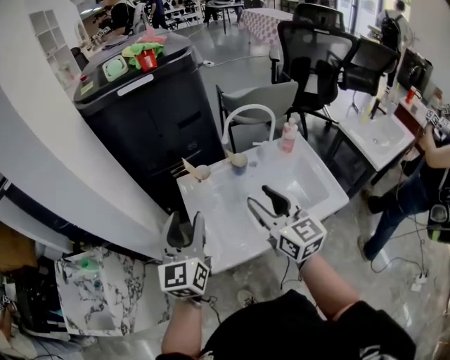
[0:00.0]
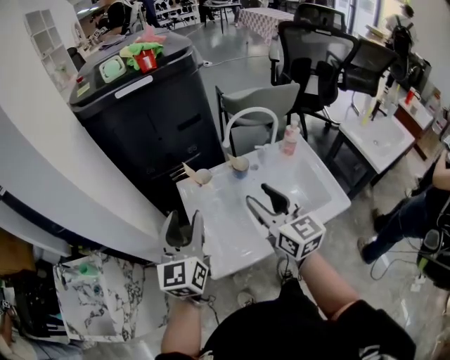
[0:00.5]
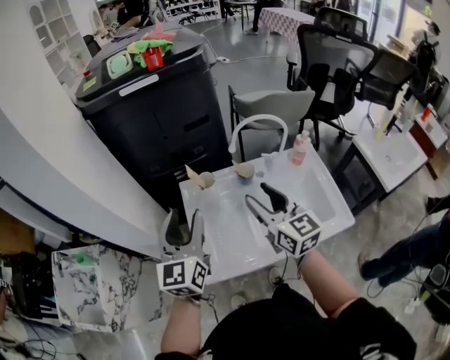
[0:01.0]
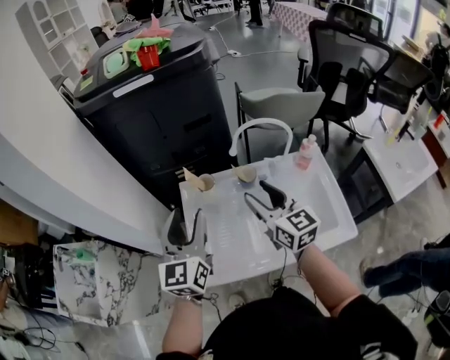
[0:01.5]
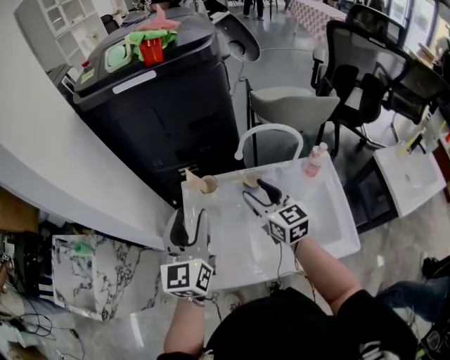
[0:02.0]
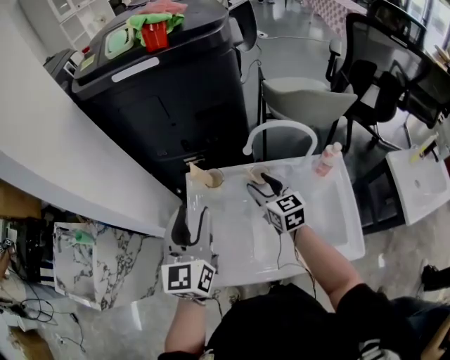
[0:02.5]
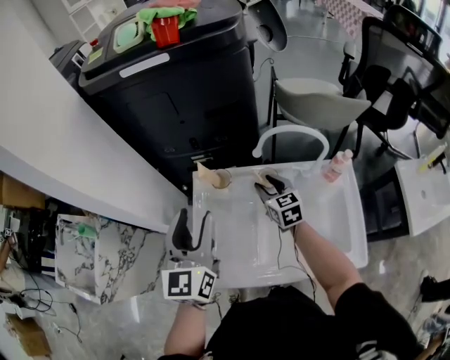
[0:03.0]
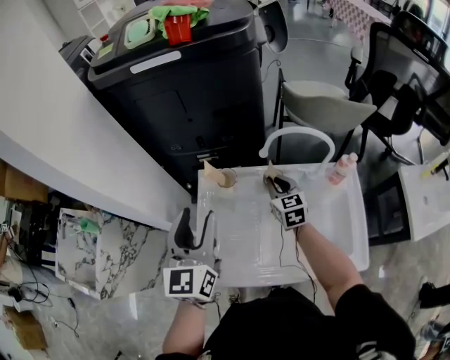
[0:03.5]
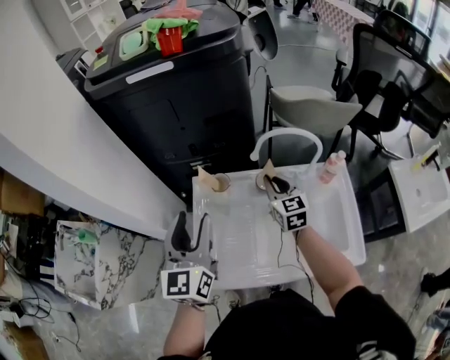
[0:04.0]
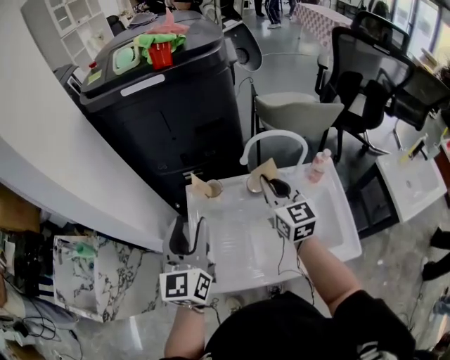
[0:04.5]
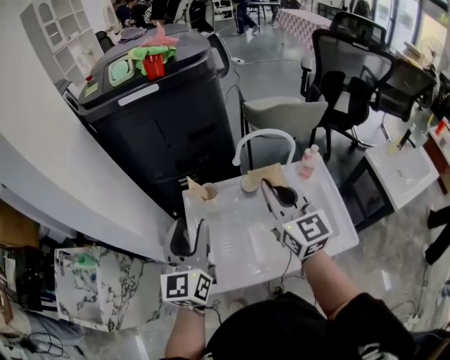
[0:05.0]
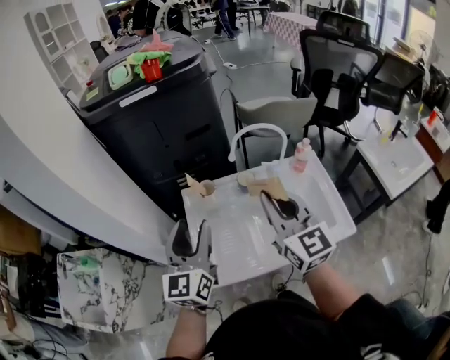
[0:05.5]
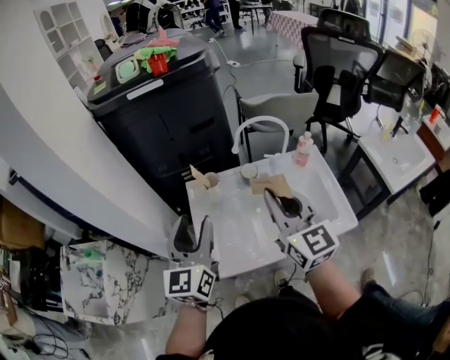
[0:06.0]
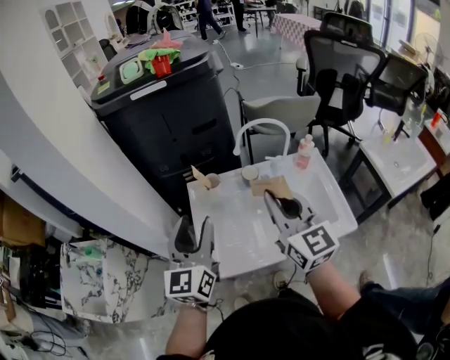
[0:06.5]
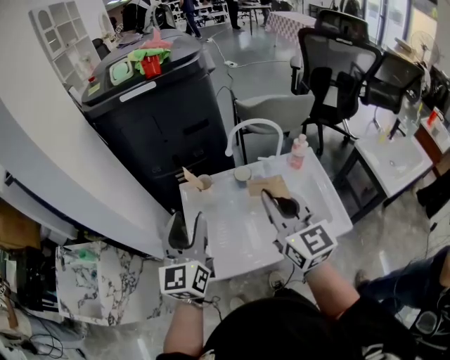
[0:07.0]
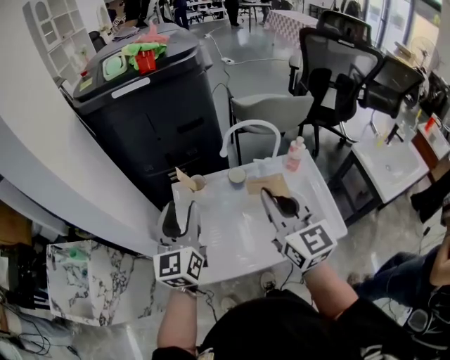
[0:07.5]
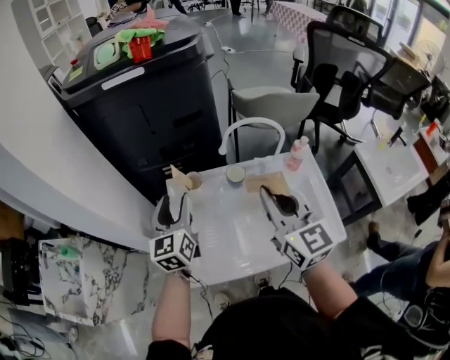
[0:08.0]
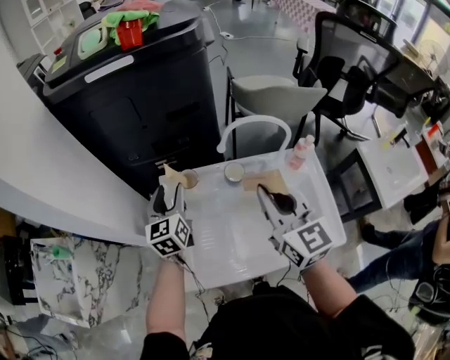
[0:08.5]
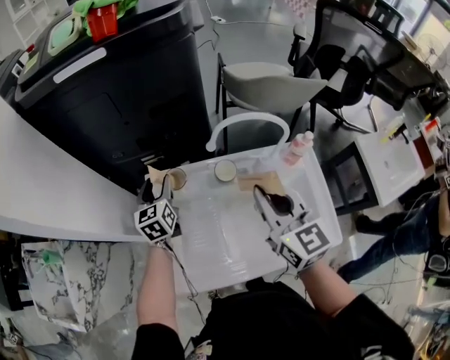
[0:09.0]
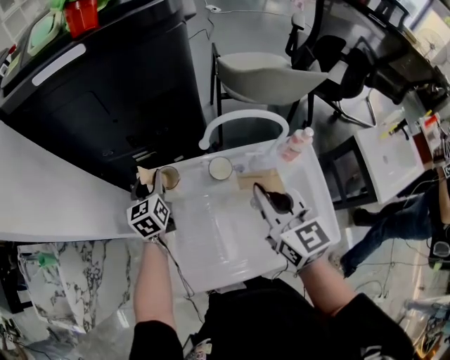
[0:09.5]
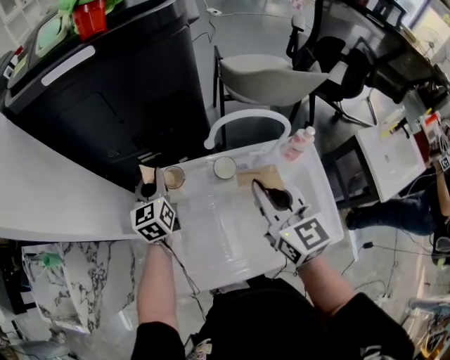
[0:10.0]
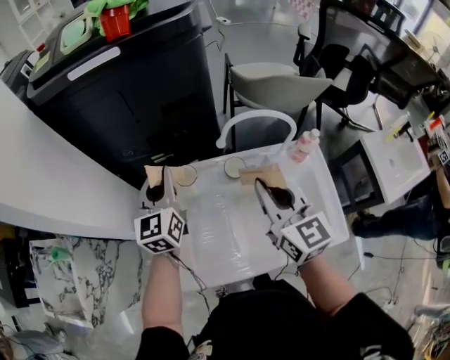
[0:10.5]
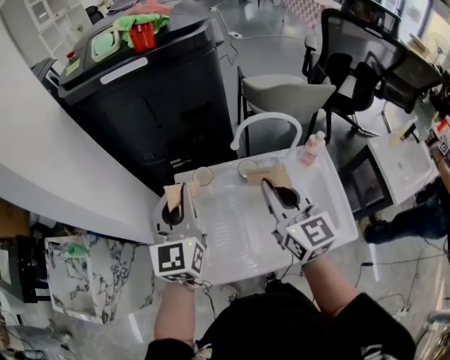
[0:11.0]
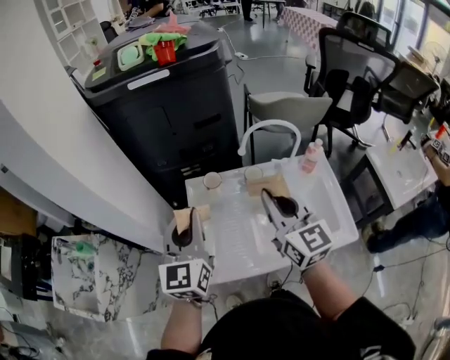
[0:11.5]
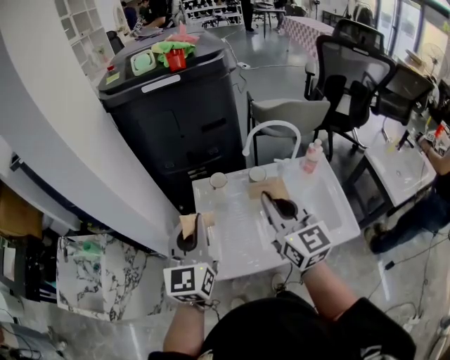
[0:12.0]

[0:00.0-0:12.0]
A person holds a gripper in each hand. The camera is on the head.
0:00.0 to 0:02.0: The right gripper moves forward and downward, approximately 20 cm; the left gripper goes about 15 cm forward and to the right.
0:02.0 to 0:04.0: The right gripper moves forward and downward, approximately 10 cm, and closes up.
0:04.0 to 0:06.0: The left gripper heads backward, covering some 10 cm. The right gripper goes some 30 cm backward and upward, and changes its angle by some 20 degrees.
0:06.0 to 0:08.0: The left gripper shifts roughly 15 cm forward and downward. The right gripper goes about 5 cm forward.
0:08.0 to 0:10.0: The right gripper shifts some 10 cm forward and downward. Meanwhile the left gripper shifts approximately 20 cm forward and downward, and closes up.
0:10.0 to 0:12.0: The left gripper is displaced backward and upward by some 35 cm, and changes its angle by approximately 20 degrees; the right gripper moves backward, to the left and upward, about 20 cm.

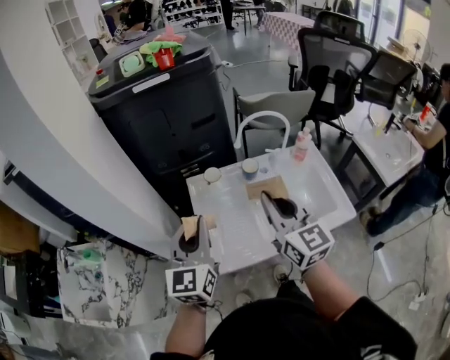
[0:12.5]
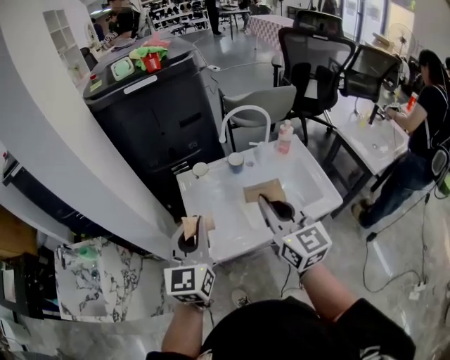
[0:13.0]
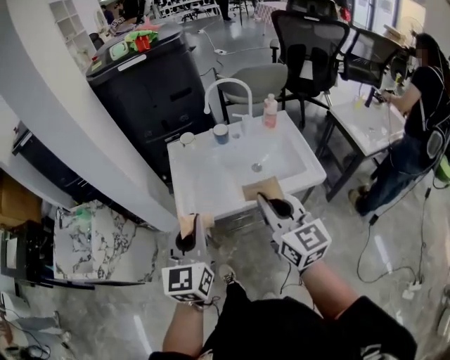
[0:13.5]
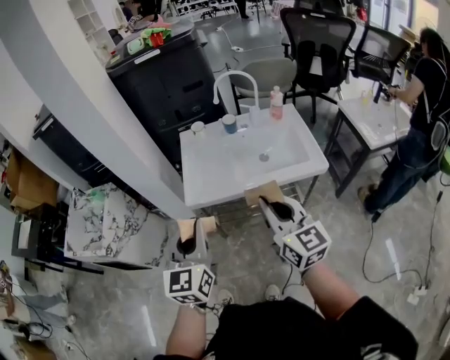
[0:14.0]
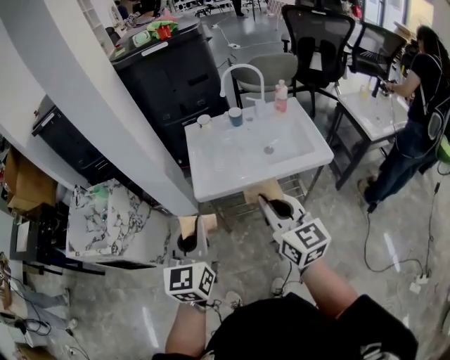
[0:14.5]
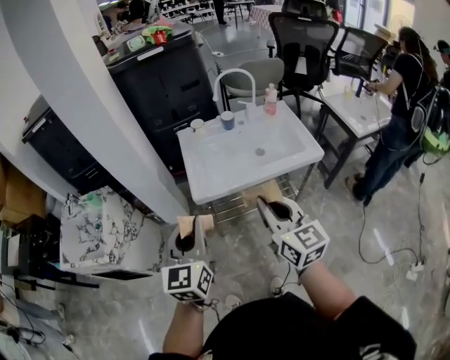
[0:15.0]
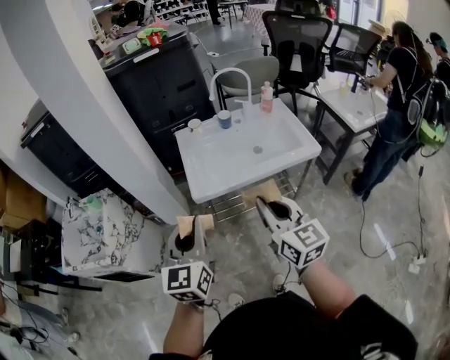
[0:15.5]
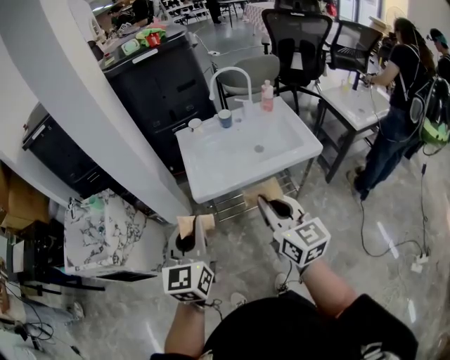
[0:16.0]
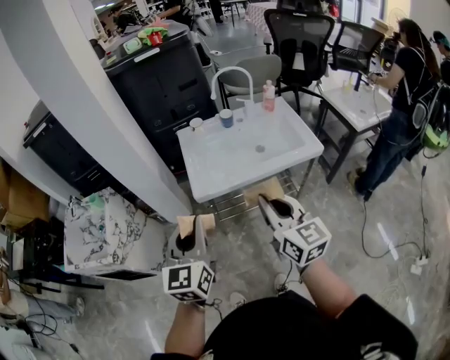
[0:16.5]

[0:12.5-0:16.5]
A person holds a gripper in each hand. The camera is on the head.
0:12.5 to 0:14.5: Both grippers travel together backward, some 35 cm.
0:14.5 to 0:16.5: There are only small adjustments of the grippers.

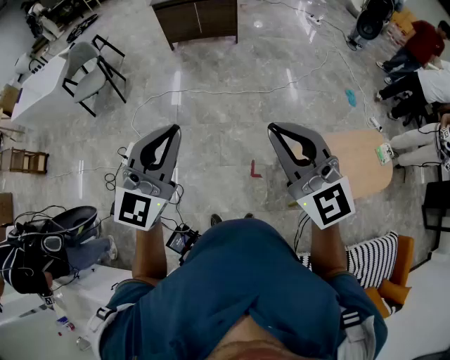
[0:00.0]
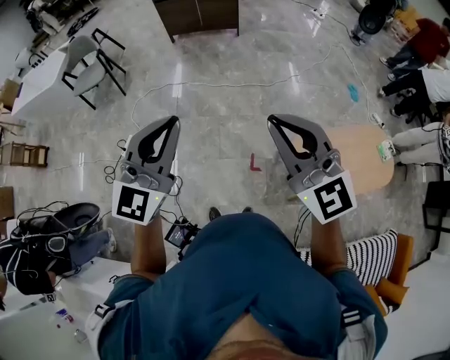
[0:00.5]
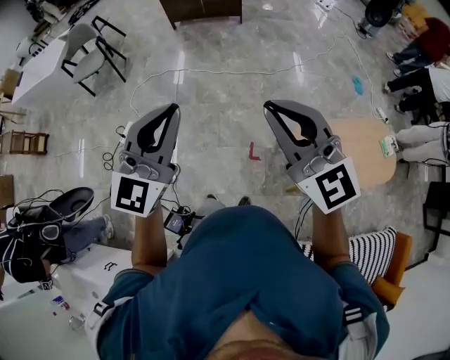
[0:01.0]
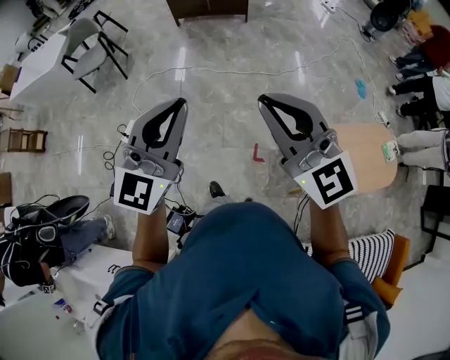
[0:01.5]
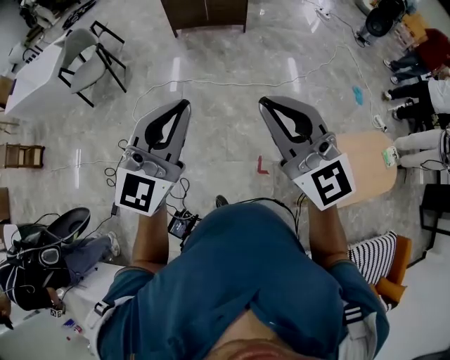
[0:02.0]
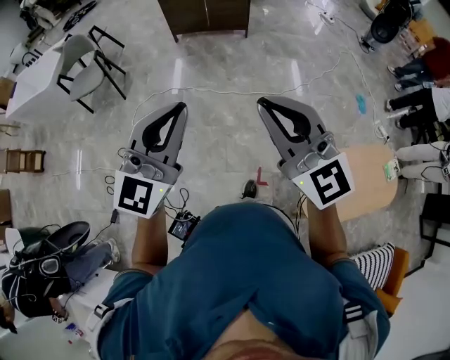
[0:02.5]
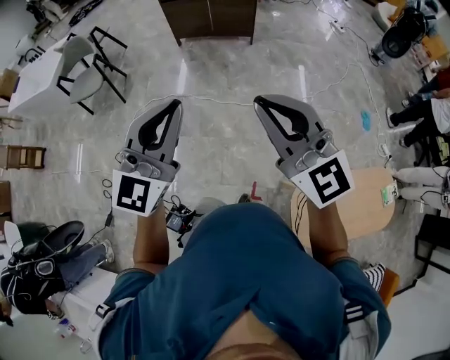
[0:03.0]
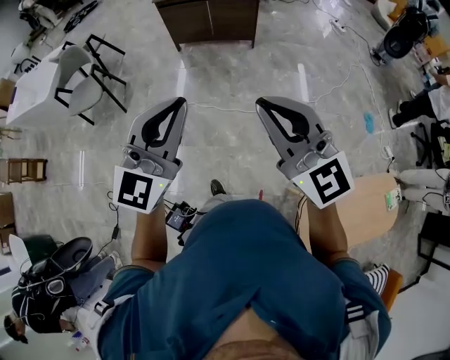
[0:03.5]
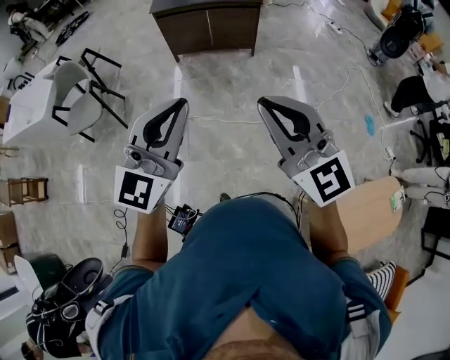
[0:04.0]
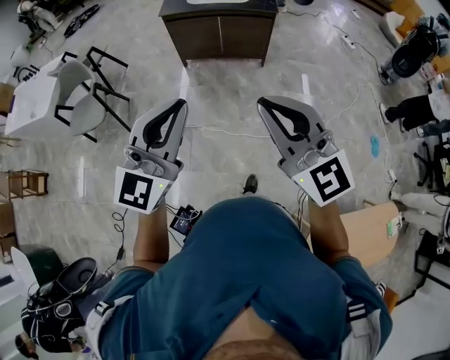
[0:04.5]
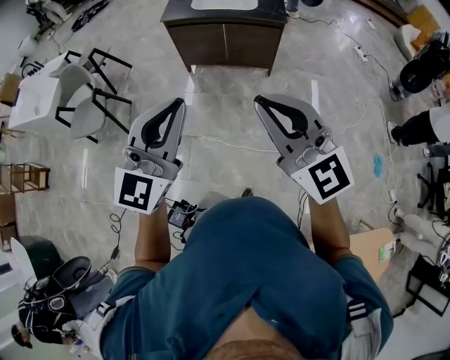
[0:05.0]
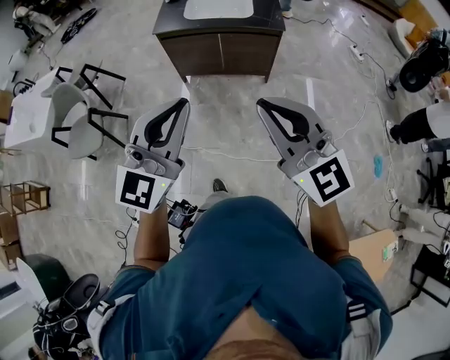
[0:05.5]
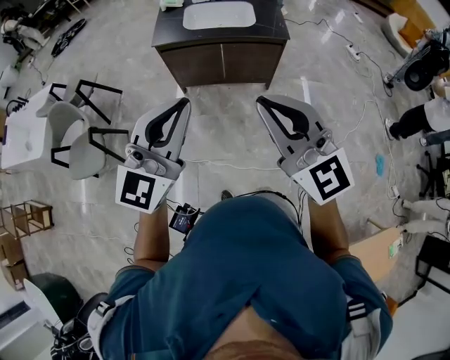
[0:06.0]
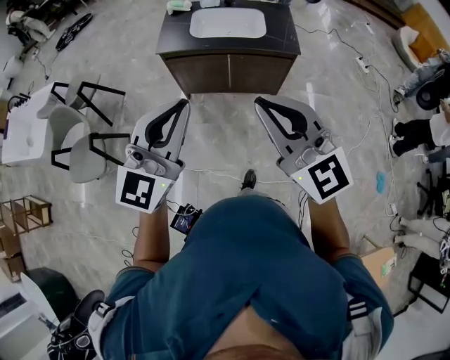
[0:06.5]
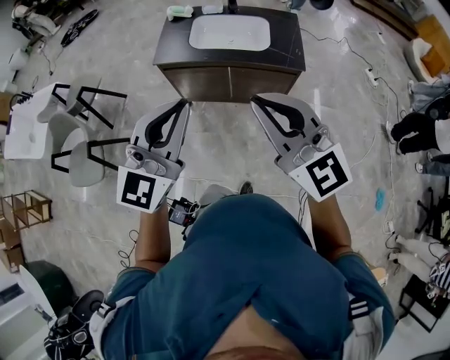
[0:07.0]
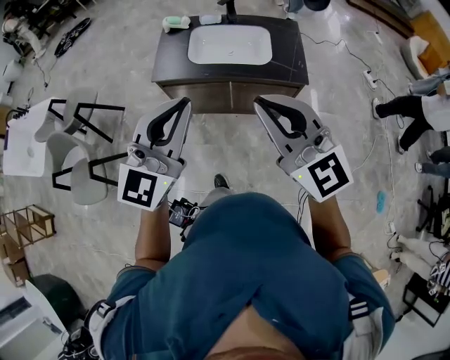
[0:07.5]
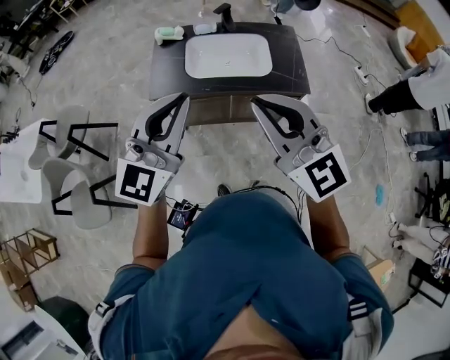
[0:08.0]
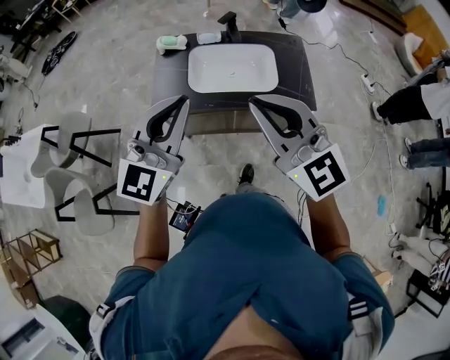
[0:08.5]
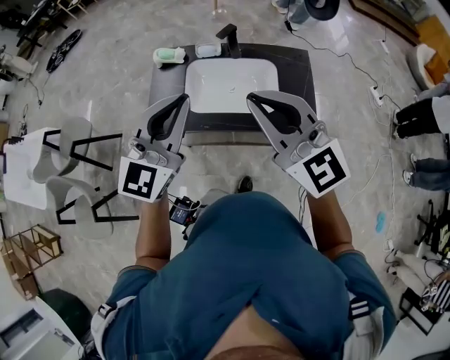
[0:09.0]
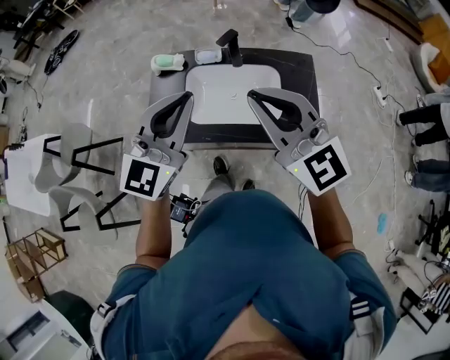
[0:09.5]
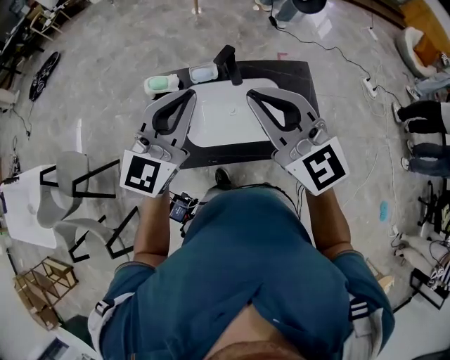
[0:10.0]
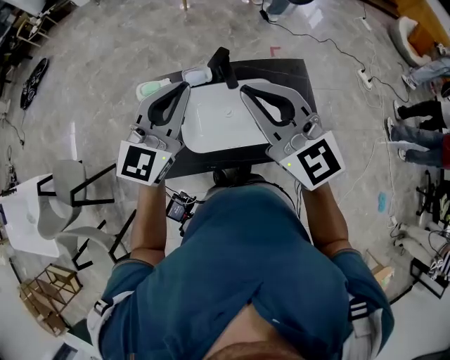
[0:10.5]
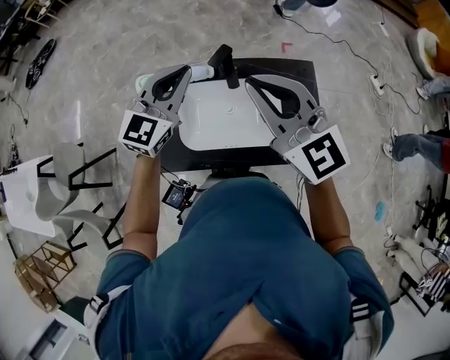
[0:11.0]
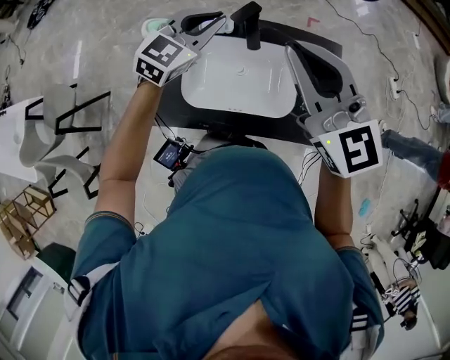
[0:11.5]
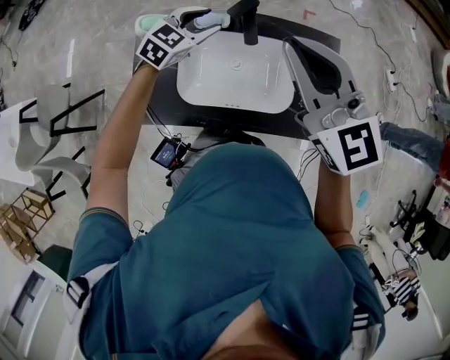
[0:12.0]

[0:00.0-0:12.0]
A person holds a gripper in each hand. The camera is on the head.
0:00.0 to 0:02.0: The grippers both shift forward and to the left by about 15 cm.
0:02.0 to 0:04.0: The two grippers go roughly 35 cm forward.
0:04.0 to 0:06.0: Both grippers are carried forward, about 40 cm.
0:06.0 to 0:08.0: Both grippers travel together forward, approximately 40 cm.
0:08.0 to 0:10.0: Both grippers move forward, roughly 35 cm.
0:10.0 to 0:12.0: The left gripper heads downward and forward, covering some 35 cm, and tilts its fingers some 30 degrees downward, while the right gripper goes approximately 15 cm forward and downward.
